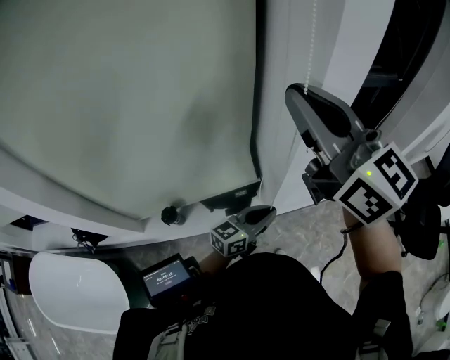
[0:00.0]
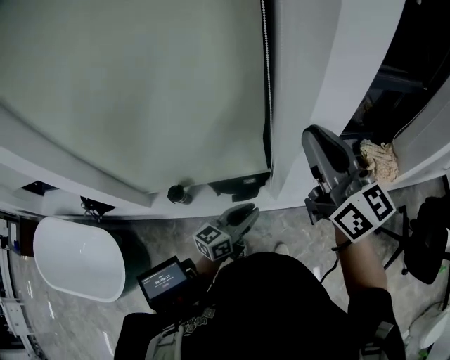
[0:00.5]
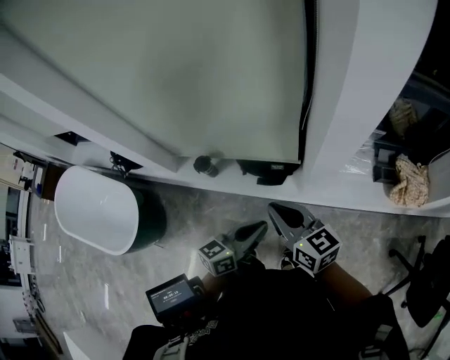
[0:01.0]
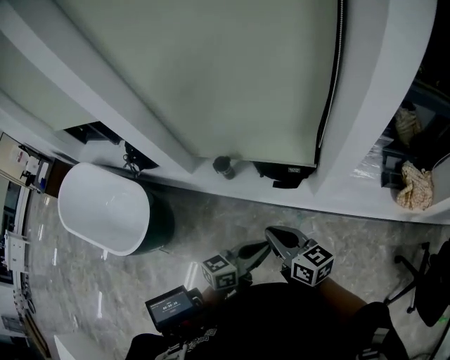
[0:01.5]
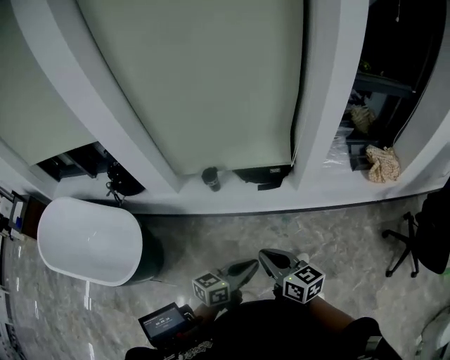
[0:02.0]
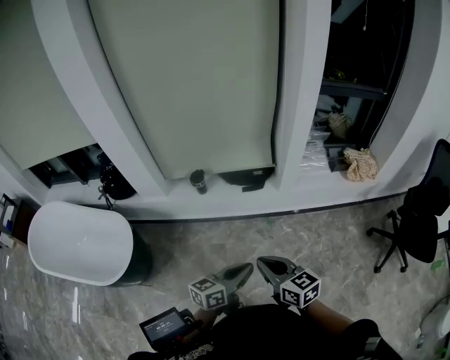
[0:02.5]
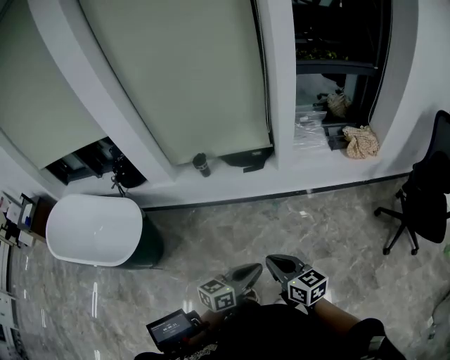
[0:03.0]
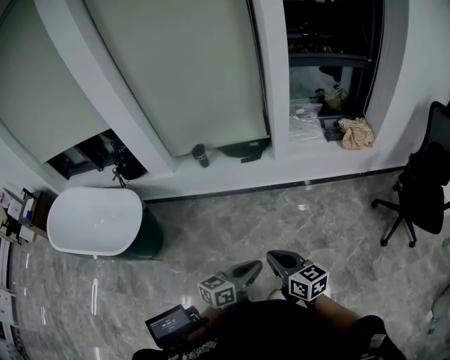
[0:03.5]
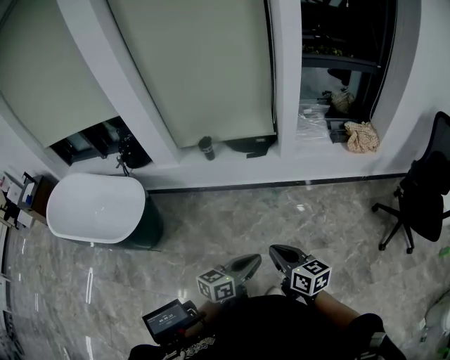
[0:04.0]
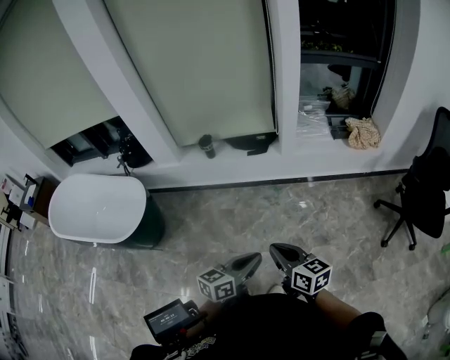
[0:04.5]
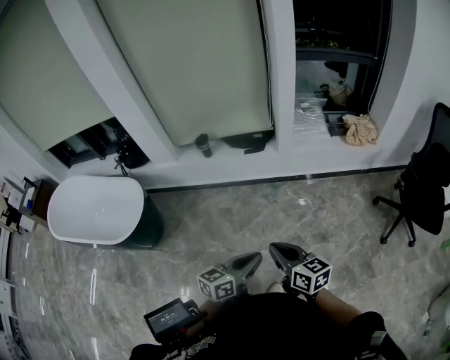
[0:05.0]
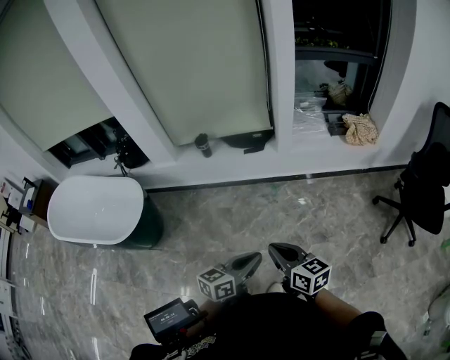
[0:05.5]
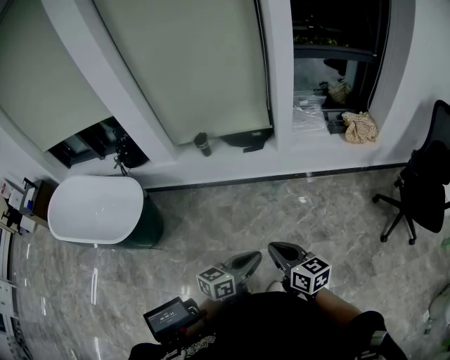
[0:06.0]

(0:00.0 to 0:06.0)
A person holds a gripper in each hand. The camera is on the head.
0:00.0 - 0:02.0: The left gripper changes place by approximately 40 cm, and turns by about 20 degrees; the right gripper shifts by roughly 60 cm, and changes its angle by about 40 degrees.
0:02.0 - 0:04.0: The right gripper is displaced backward and to the right by approximately 30 cm. The left gripper travels backward by roughly 25 cm.
0:04.0 - 0:06.0: The grippers make only small movements.

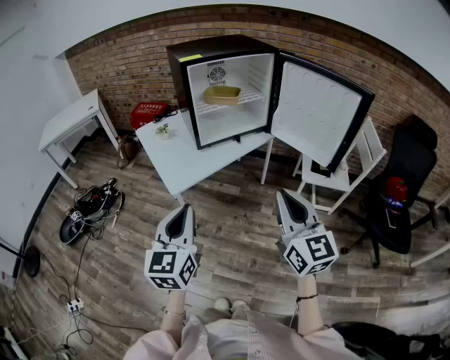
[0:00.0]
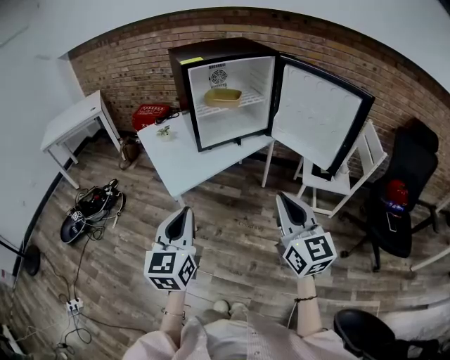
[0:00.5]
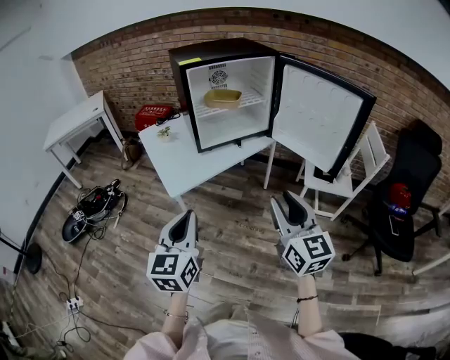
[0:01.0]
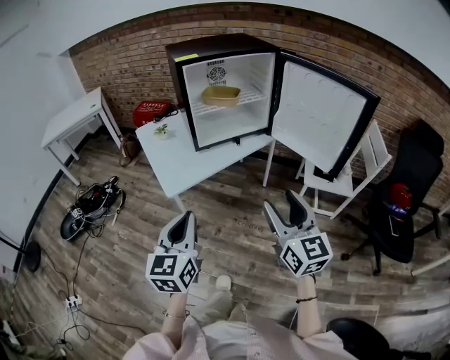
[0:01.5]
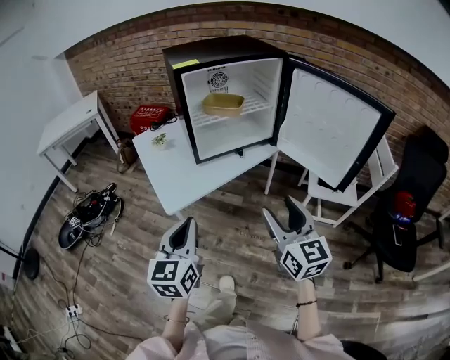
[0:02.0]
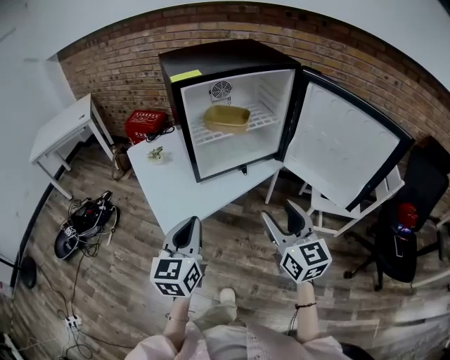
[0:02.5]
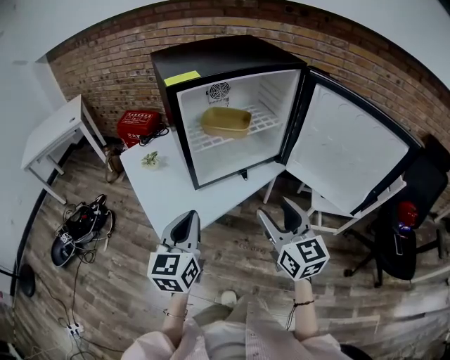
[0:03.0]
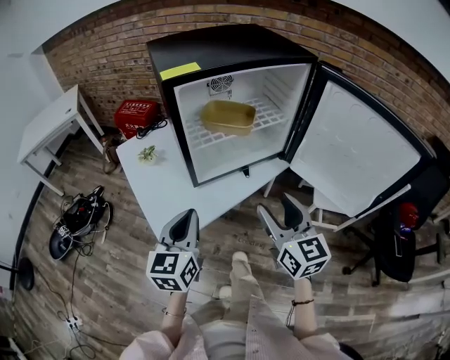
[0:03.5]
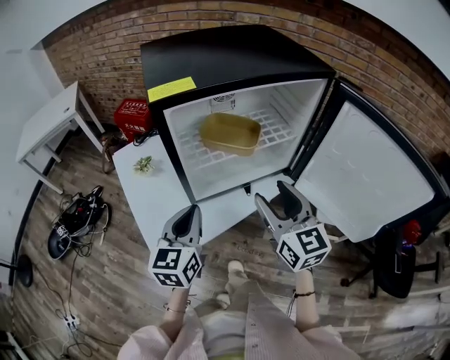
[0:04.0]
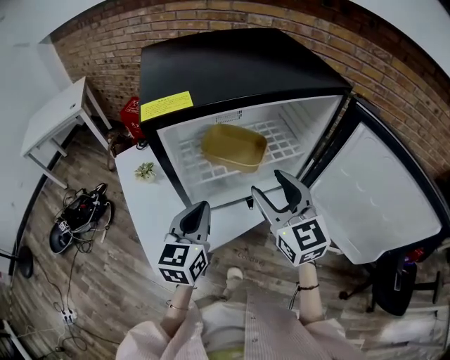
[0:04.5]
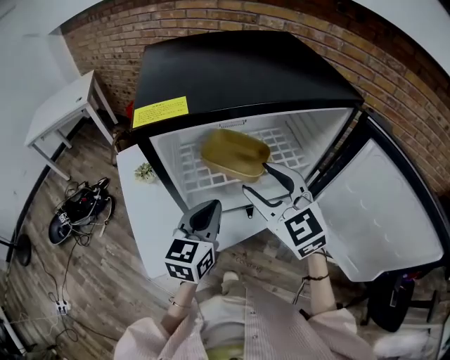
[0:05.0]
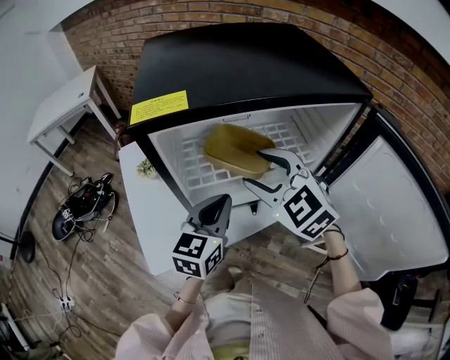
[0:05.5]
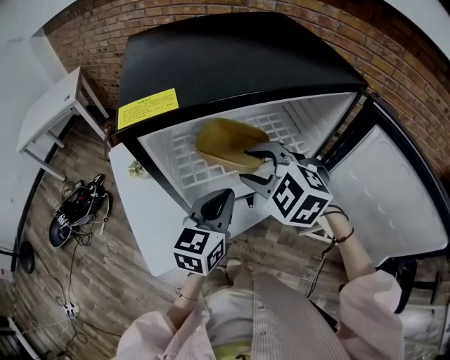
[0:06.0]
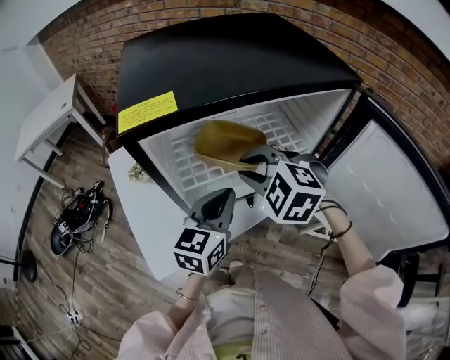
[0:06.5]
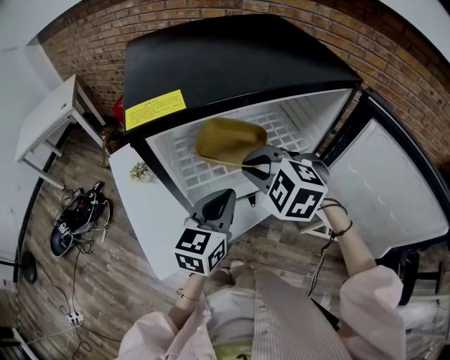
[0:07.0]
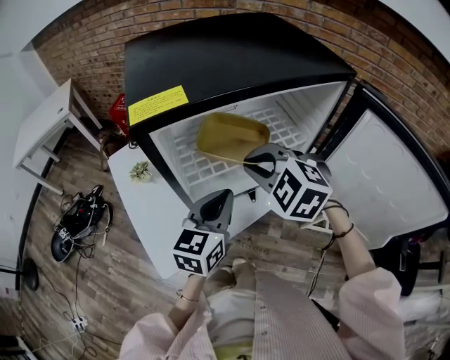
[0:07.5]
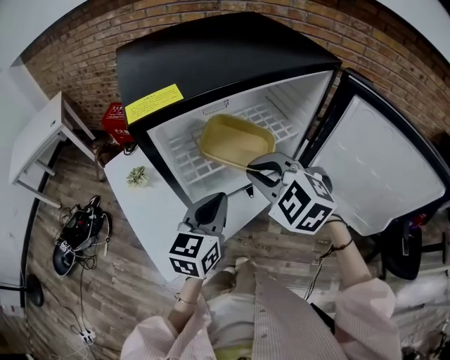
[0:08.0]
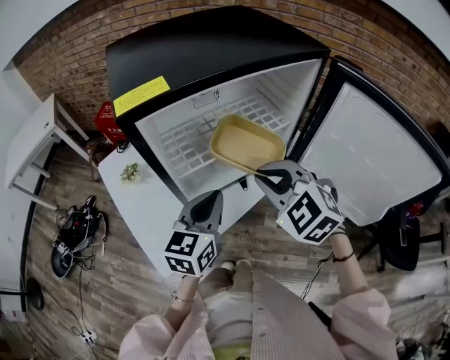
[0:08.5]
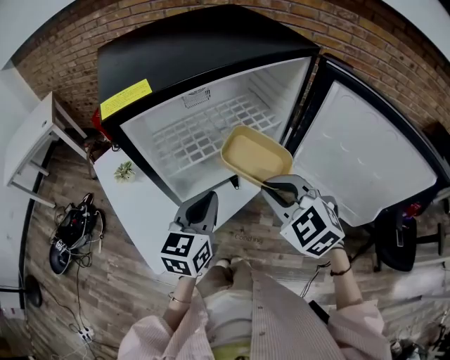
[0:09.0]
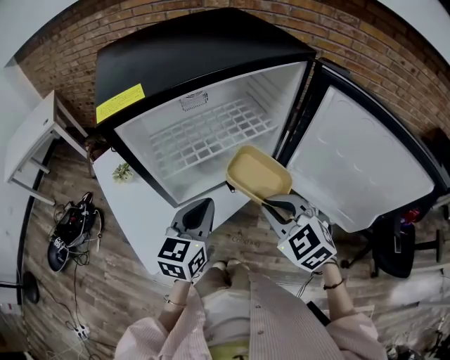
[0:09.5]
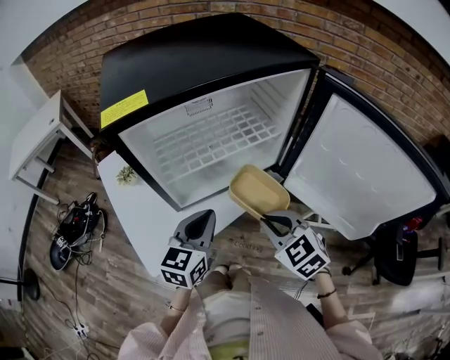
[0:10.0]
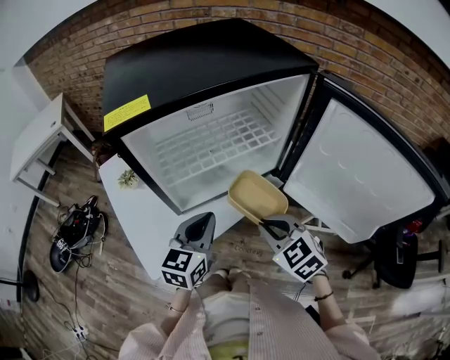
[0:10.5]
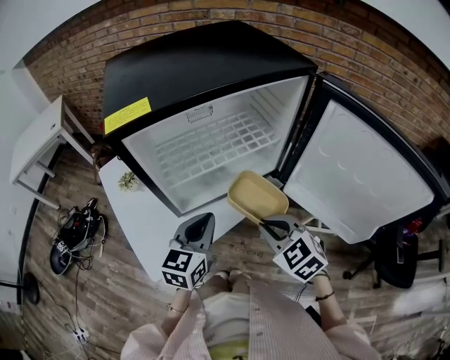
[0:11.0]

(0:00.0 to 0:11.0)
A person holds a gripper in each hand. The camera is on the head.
0:00.0 - 0:02.0: The grippers both shift forward and downward by roughly 10 cm. The right gripper opens its fingers.
0:02.0 - 0:03.5: The two grippers go roughly 20 cm forward.
0:03.5 - 0:05.5: The left gripper is displaced forward and to the right by about 20 cm, while the right gripper goes about 20 cm forward, and swivels some 60 degrees.
0:05.5 - 0:07.5: The right gripper closes up.
0:07.5 - 0:09.0: The right gripper moves backward and to the right, approximately 15 cm, and turns by approximately 20 degrees.
0:09.0 - 0:11.0: The right gripper moves downward, some 10 cm.

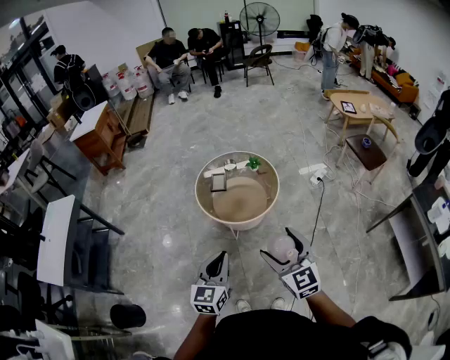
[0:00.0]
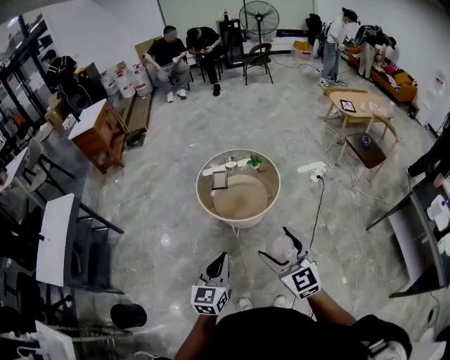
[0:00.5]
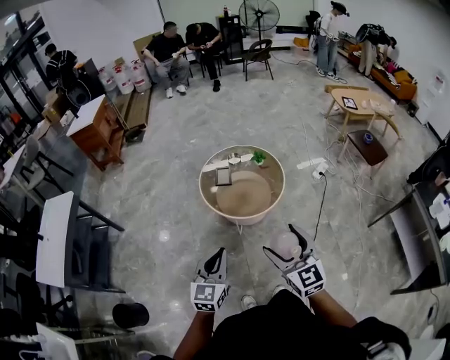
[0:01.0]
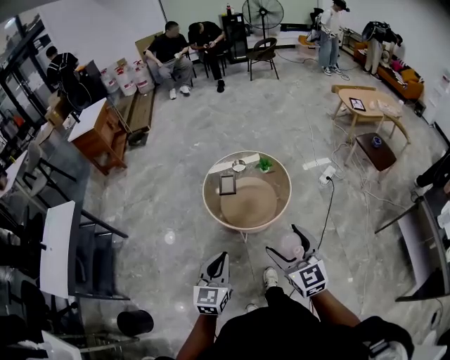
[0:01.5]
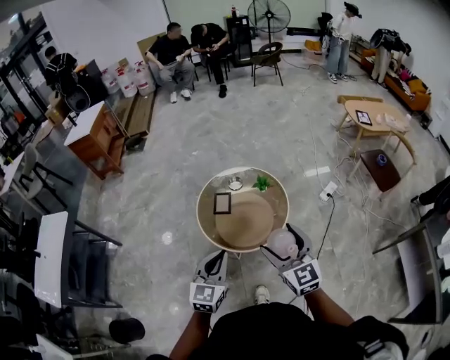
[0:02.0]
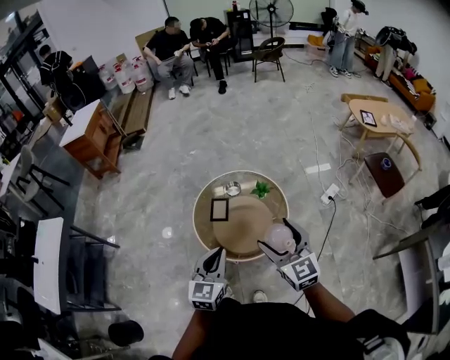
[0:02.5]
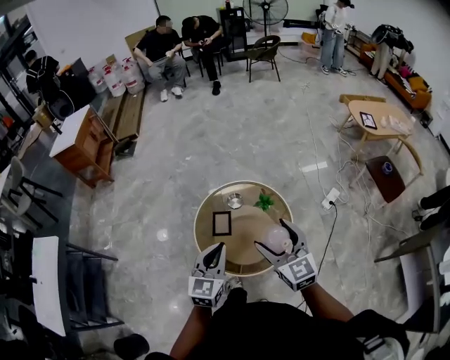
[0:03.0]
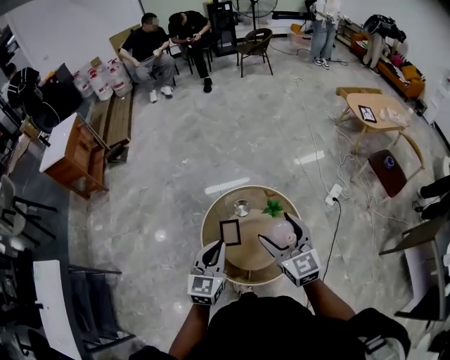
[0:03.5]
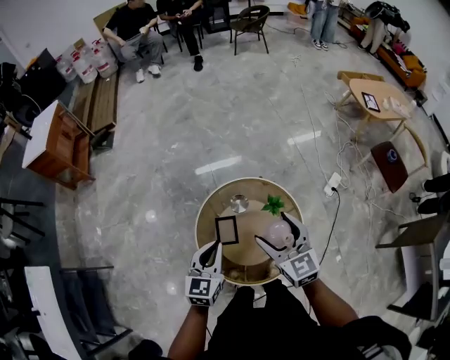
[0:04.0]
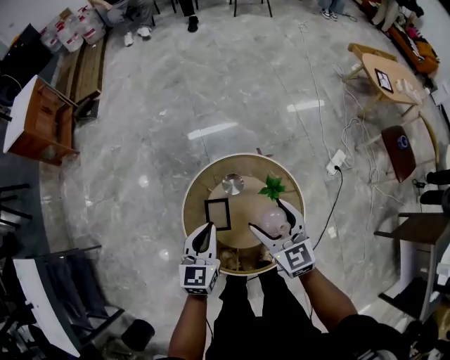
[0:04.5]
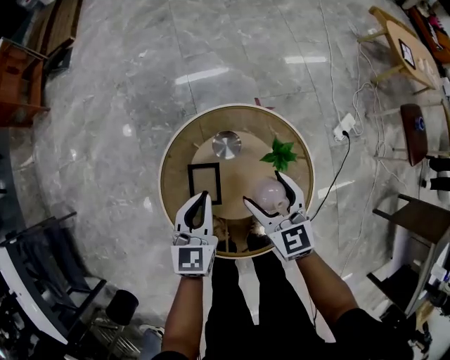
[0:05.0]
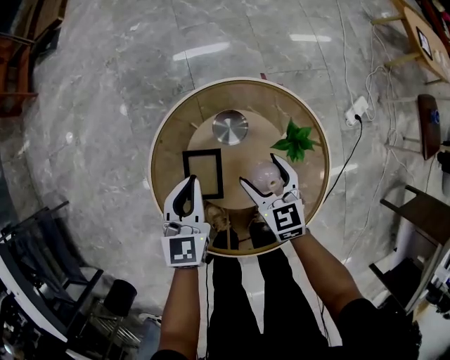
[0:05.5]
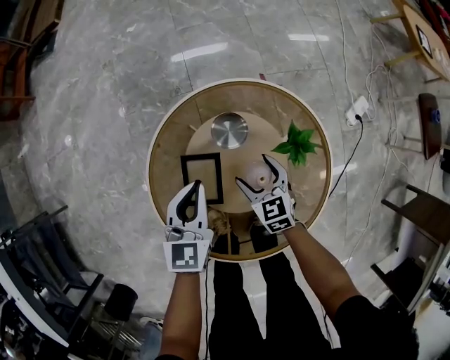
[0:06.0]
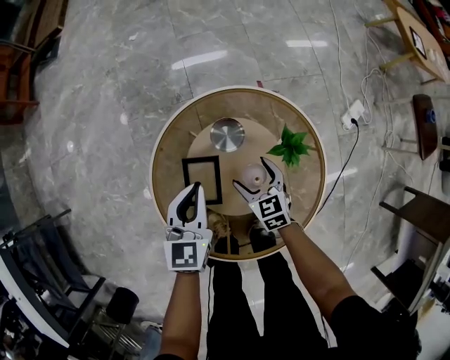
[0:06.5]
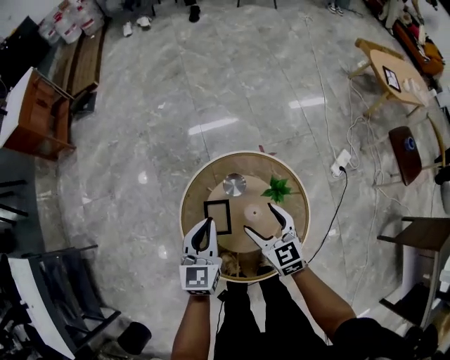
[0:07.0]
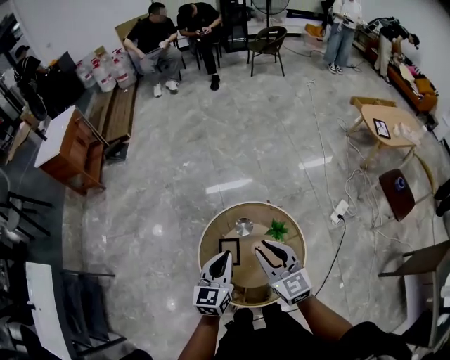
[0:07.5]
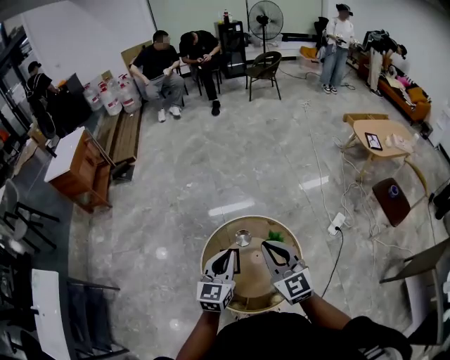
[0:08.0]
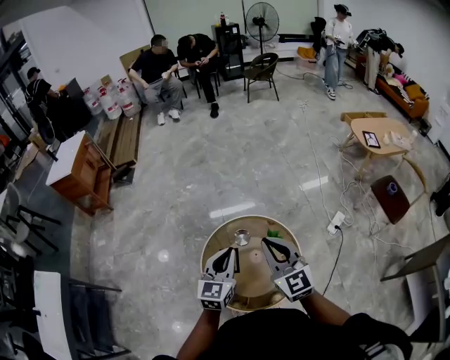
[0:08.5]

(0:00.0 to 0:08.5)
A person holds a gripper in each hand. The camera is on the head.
0:00.0 - 0:02.0: The grippers both shift forward by some 20 cm.
0:02.0 - 0:04.0: The two grippers go about 35 cm forward.
0:04.0 - 0:06.5: The right gripper shifts approximately 50 cm downward, and rotates roughly 30 degrees. Meanwhile the left gripper shifts approximately 30 cm downward.
0:06.5 - 0:08.5: The right gripper is displaced upward by approximately 60 cm, points its fingers about 40 degrees further upward, and closes its fingers, while the left gripper shifts roughly 35 cm upward.

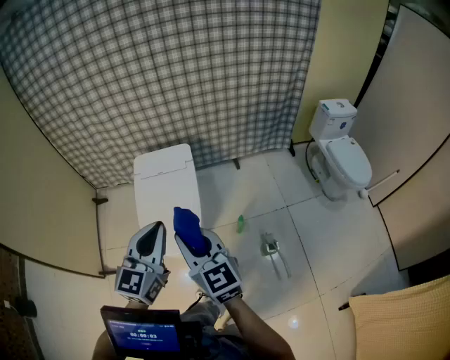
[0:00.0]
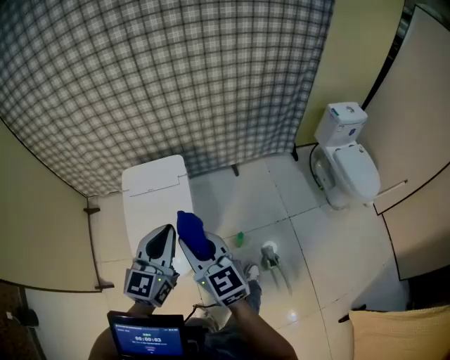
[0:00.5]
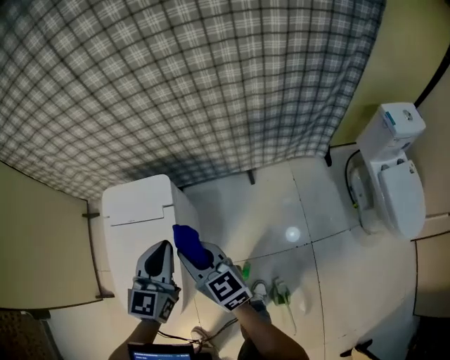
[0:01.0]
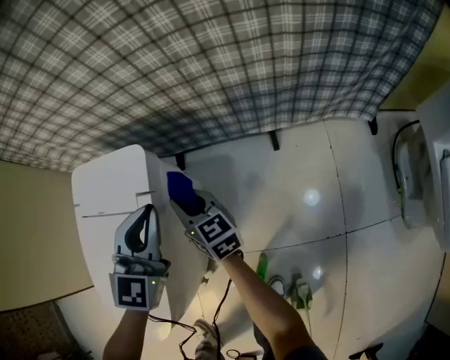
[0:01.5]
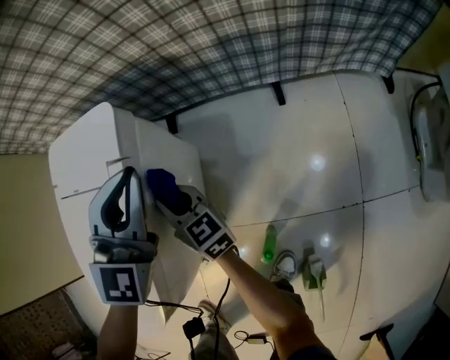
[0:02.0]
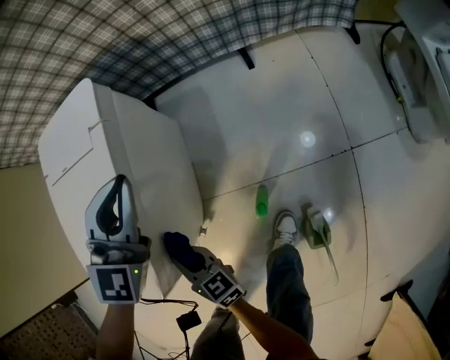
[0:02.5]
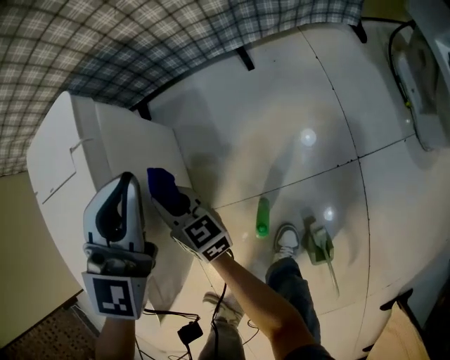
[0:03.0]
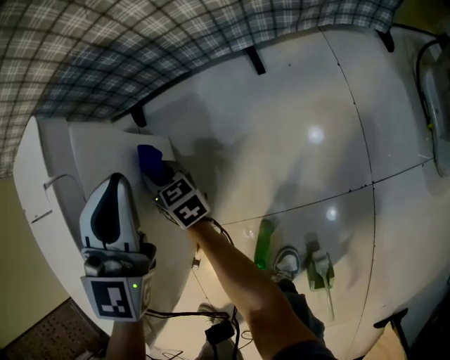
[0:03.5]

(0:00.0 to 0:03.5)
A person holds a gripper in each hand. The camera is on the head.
0:00.0 - 0:02.0: Both grippers are carried forward, approximately 50 cm. The two grippers go approximately 50 cm downward. The left gripper turns by about 30 degrees. Meanwhile the right gripper rotates some 40 degrees.
0:02.0 - 0:03.5: The two grippers go about 15 cm downward. The right gripper travels backward and back again, approximately 25 cm each way.
